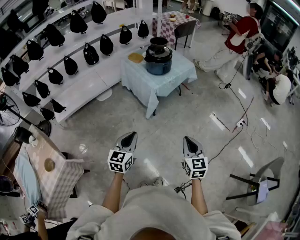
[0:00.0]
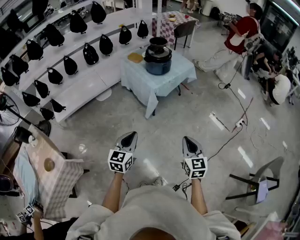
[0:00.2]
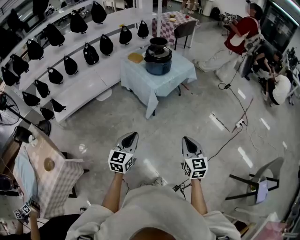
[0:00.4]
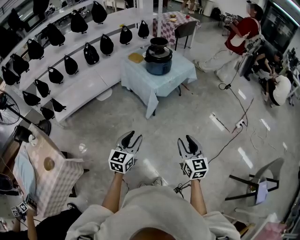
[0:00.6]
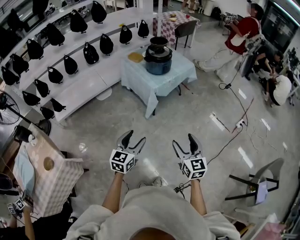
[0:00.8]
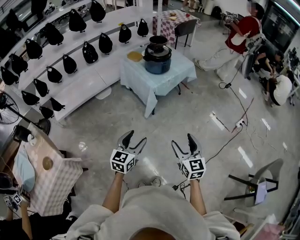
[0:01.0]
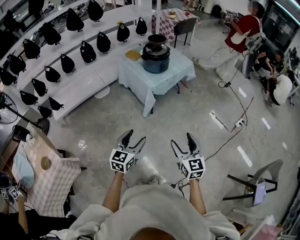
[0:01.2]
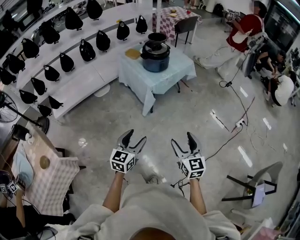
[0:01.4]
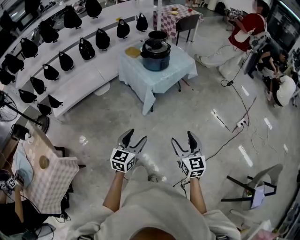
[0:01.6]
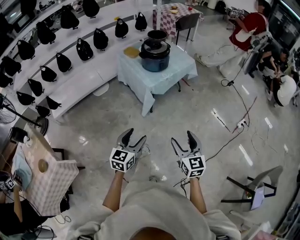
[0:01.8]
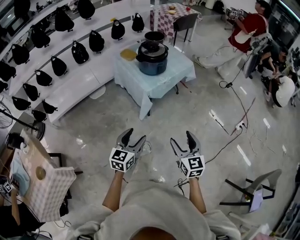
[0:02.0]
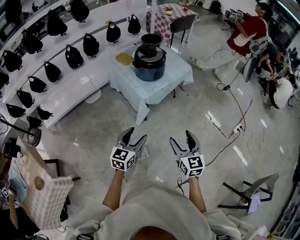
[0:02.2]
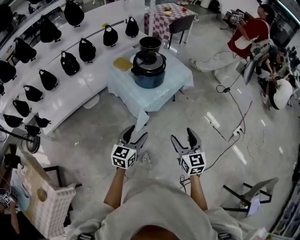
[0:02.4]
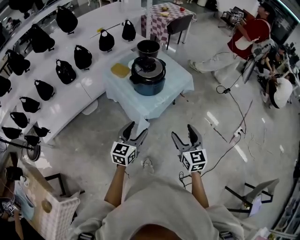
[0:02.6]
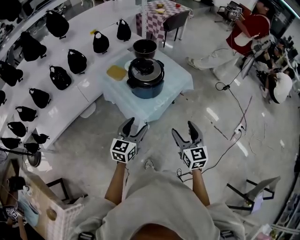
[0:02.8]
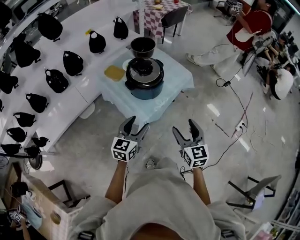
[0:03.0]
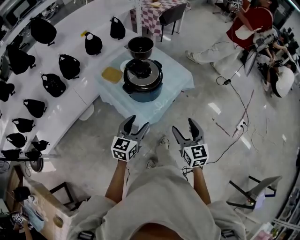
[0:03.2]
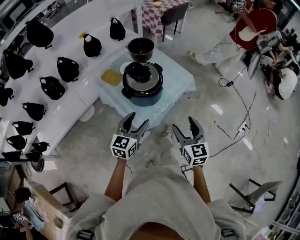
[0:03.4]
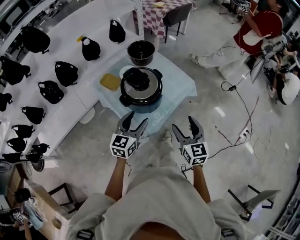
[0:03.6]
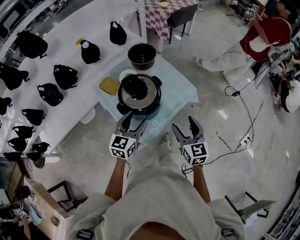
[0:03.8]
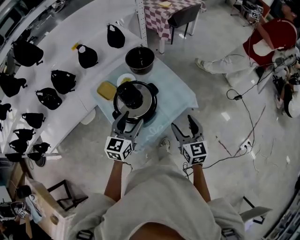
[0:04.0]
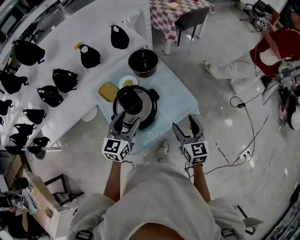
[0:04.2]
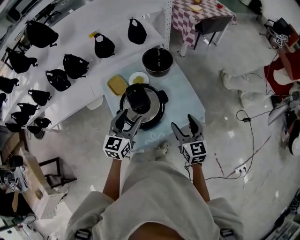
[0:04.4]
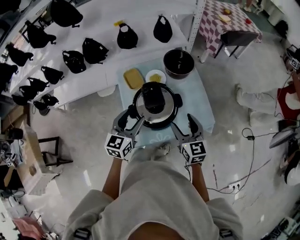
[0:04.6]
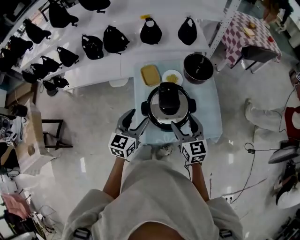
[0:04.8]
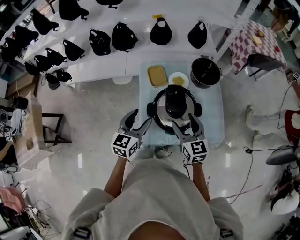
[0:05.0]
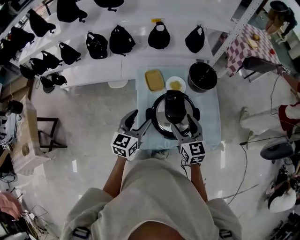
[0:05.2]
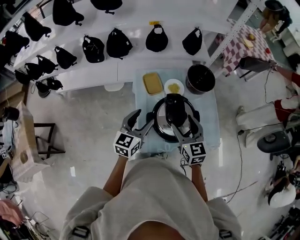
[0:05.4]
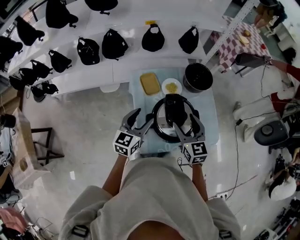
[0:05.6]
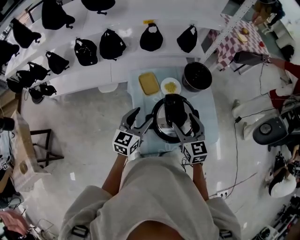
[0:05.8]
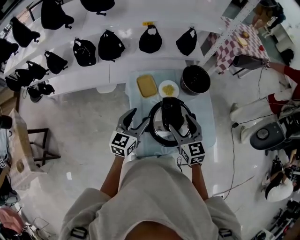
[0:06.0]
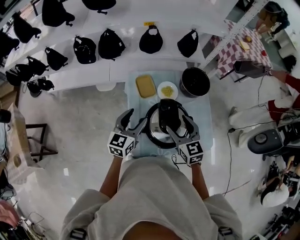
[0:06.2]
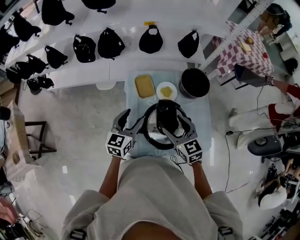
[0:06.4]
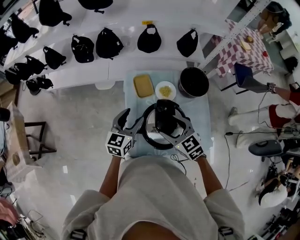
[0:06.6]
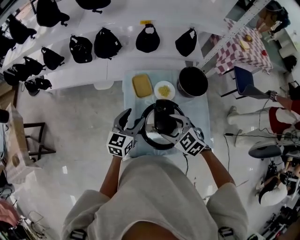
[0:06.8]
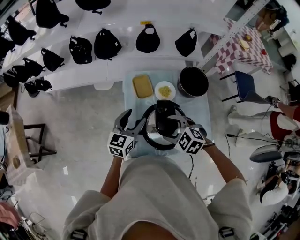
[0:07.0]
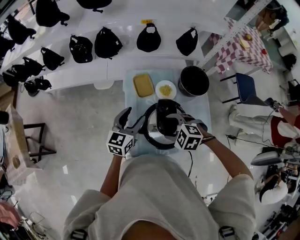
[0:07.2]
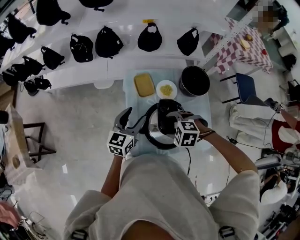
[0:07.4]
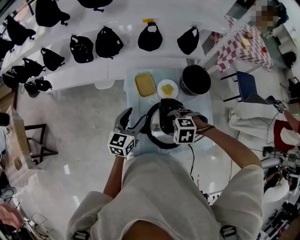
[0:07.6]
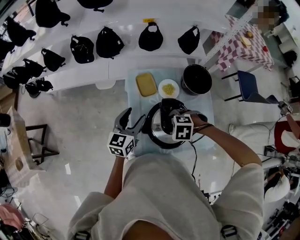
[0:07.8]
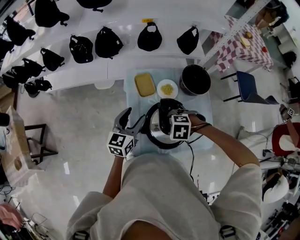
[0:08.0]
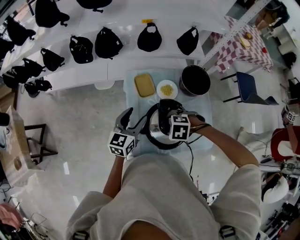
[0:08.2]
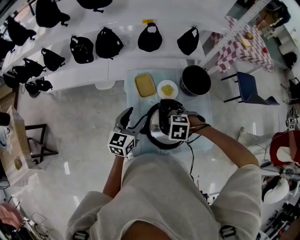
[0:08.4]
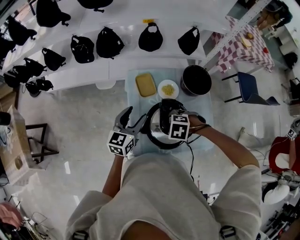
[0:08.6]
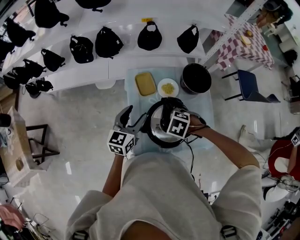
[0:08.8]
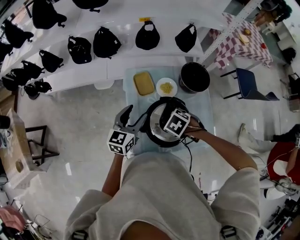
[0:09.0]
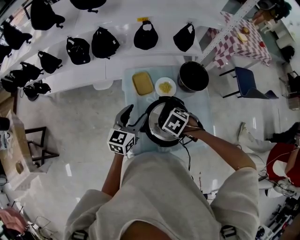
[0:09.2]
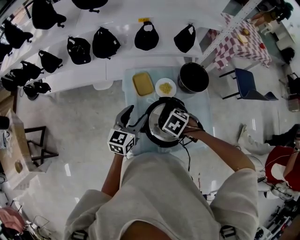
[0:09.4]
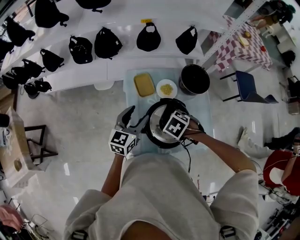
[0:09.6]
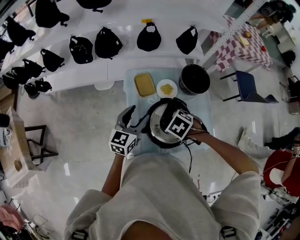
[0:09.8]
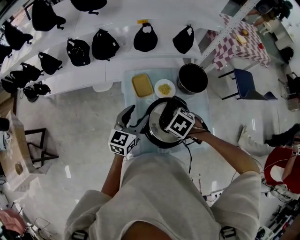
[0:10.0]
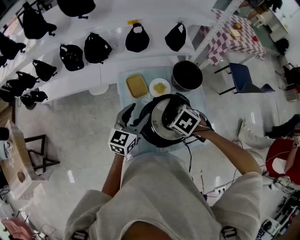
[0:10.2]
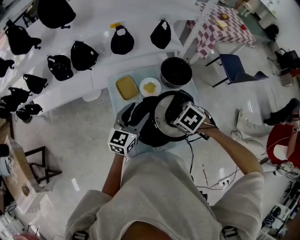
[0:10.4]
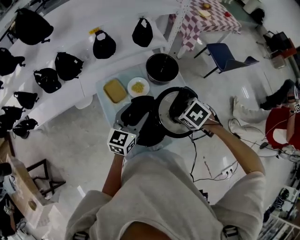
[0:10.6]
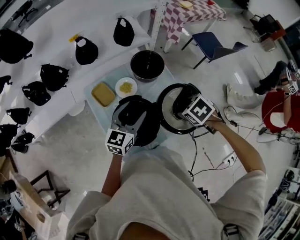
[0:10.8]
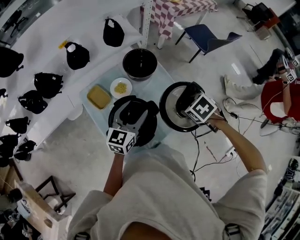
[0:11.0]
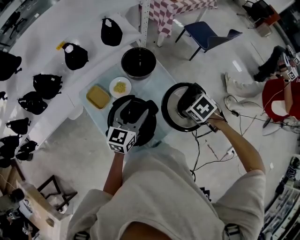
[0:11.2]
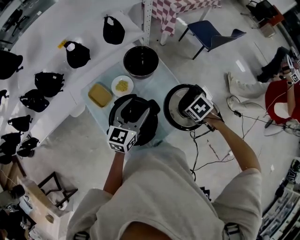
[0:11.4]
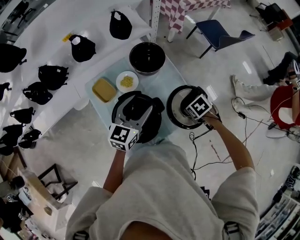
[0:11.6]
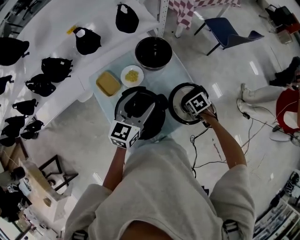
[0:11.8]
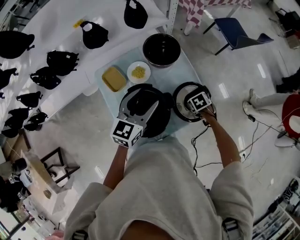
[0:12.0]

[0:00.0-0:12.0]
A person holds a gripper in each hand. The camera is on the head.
0:00.0 to 0:01.6: The right gripper heads forward, covering approximately 5 cm, and opens. The left gripper heads to the right, covering approximately 10 cm, and opens up.
0:01.6 to 0:03.0: The pair of grippers is taken forward, about 40 cm.
0:03.0 to 0:04.4: The two grippers go some 35 cm forward. The right gripper changes its angle by approximately 20 degrees. The left gripper turns by about 20 degrees.
0:04.4 to 0:06.0: The two grippers go roughly 20 cm to the left and forward. The right gripper turns by about 20 degrees.
0:06.0 to 0:07.6: The right gripper is displaced downward by roughly 10 cm, and points its fingers some 50 degrees further downward.
0:07.6 to 0:09.0: The right gripper changes its angle by some 30 degrees.
0:09.0 to 0:10.4: The right gripper changes place by about 10 cm; the left gripper shifts by roughly 10 cm.
0:10.4 to 0:12.0: The left gripper changes place by approximately 15 cm, while the right gripper ends up about 30 cm from where it was, and changes its angle by some 40 degrees.

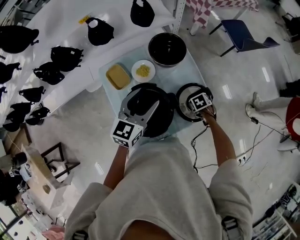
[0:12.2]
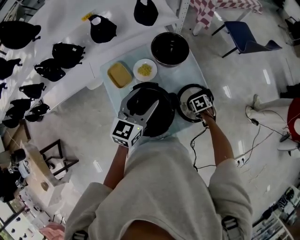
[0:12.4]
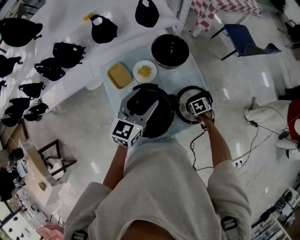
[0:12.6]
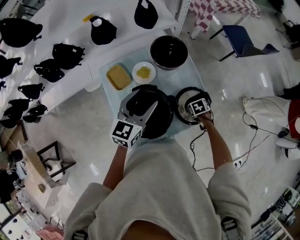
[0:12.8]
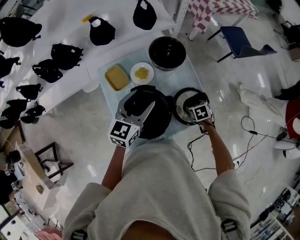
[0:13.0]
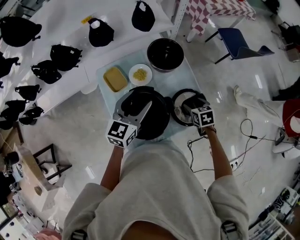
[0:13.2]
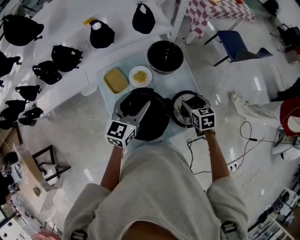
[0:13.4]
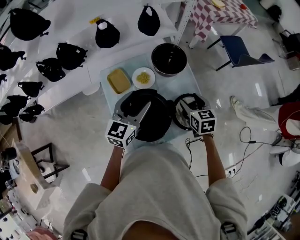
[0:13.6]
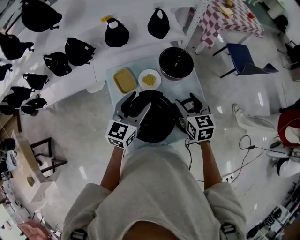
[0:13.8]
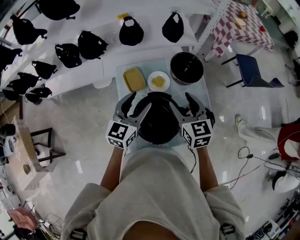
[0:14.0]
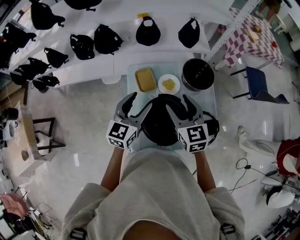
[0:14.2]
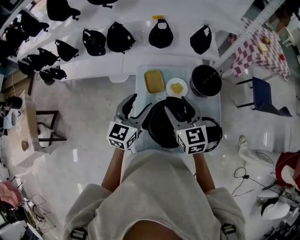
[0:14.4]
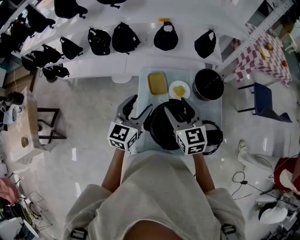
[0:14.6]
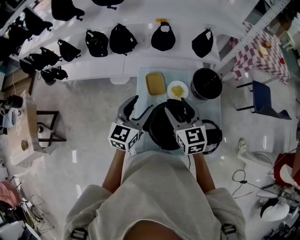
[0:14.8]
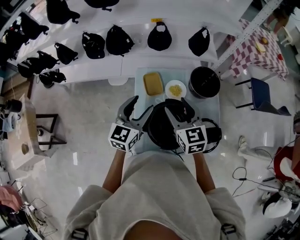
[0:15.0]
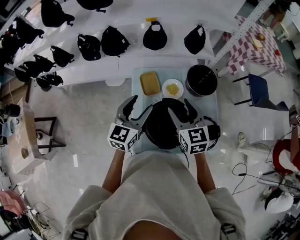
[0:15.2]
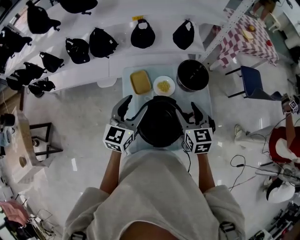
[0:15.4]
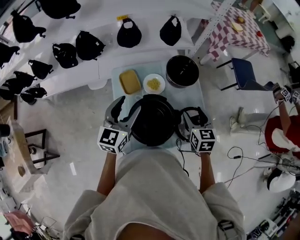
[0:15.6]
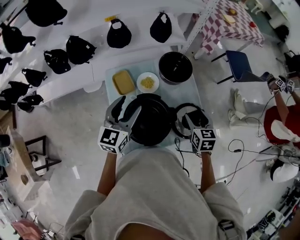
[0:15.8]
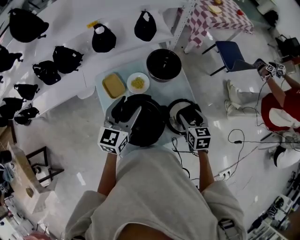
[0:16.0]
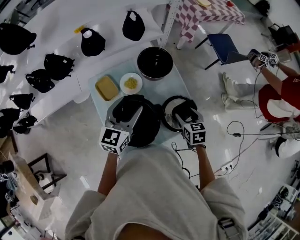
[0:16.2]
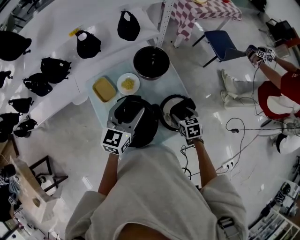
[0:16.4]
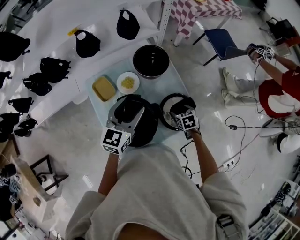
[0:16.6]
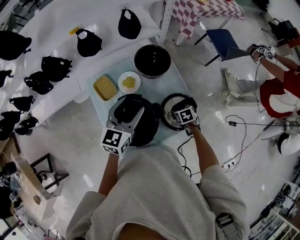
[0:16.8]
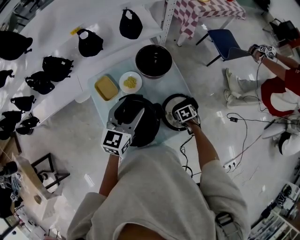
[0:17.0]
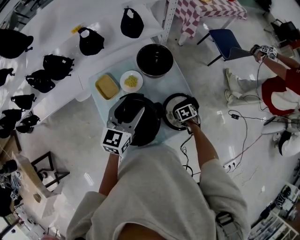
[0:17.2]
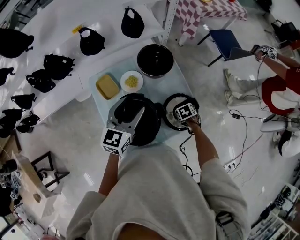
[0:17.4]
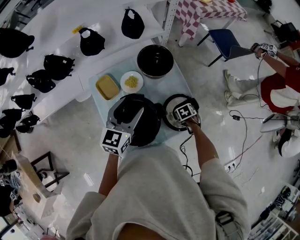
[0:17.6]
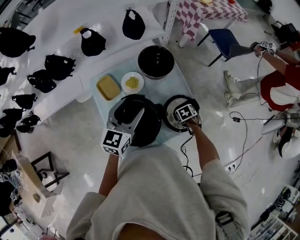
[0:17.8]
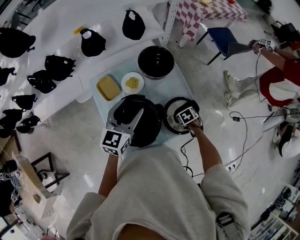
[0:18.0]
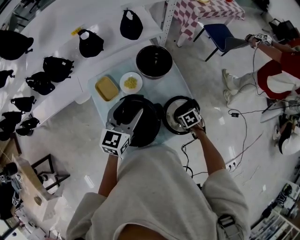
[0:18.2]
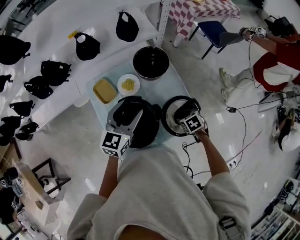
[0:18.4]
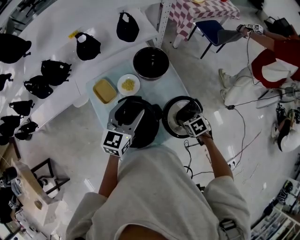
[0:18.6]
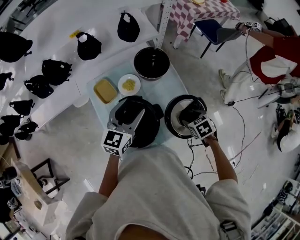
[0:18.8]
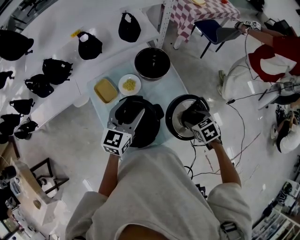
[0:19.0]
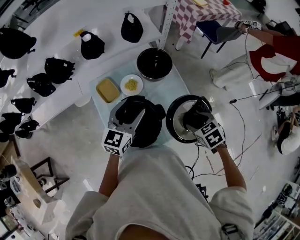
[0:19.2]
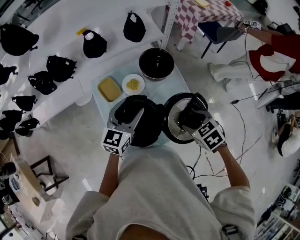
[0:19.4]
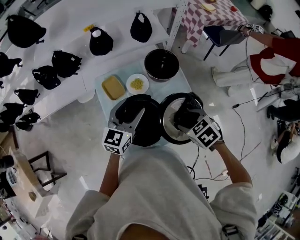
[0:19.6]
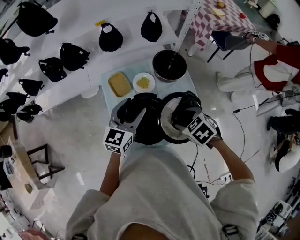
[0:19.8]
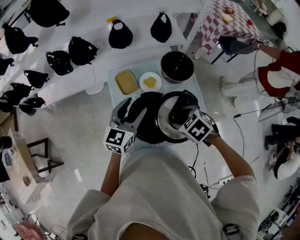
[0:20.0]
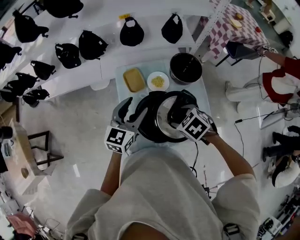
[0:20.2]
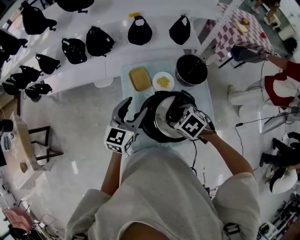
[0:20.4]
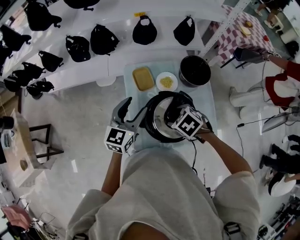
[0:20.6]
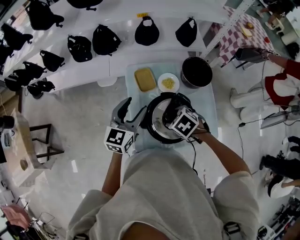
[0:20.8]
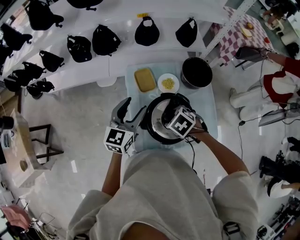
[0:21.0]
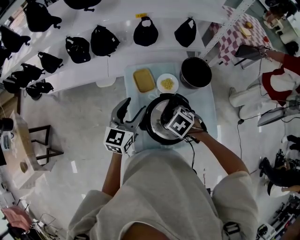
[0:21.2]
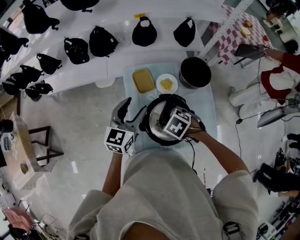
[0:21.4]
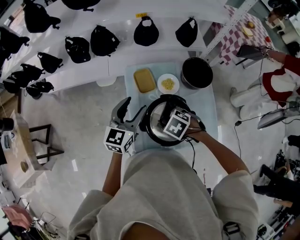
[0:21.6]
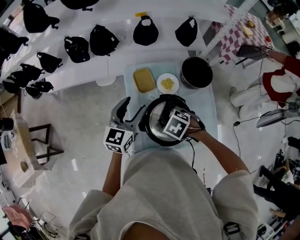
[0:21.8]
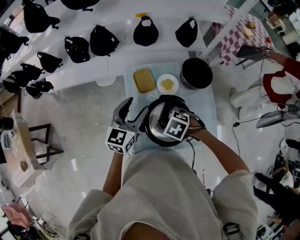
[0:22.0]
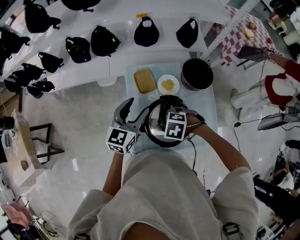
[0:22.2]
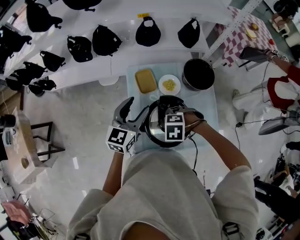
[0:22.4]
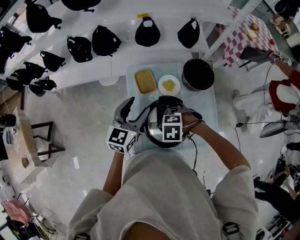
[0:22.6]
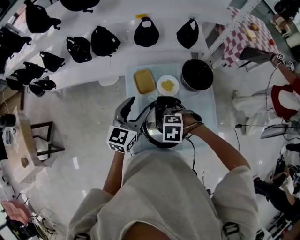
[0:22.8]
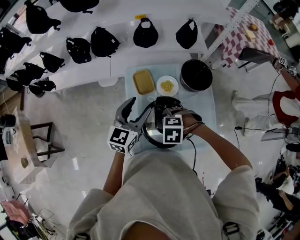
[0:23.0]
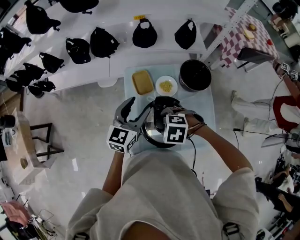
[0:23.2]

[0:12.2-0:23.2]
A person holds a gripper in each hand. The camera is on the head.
0:12.2 to 0:13.8: The right gripper shifts about 25 cm upward, and tilts its fingers about 50 degrees upward. Meanwhile the left gripper changes place by some 5 cm.
0:13.8 to 0:15.4: Both grippers move to the left, roughly 10 cm.
0:15.4 to 0:17.0: The right gripper is displaced downward by some 30 cm, and points its fingers some 50 degrees further downward; the left gripper shifts by about 15 cm.
0:17.0 to 0:18.4: The right gripper travels upward by approximately 10 cm.
0:18.4 to 0:20.0: The right gripper goes roughly 25 cm upward and to the left, and turns by roughly 30 degrees. The left gripper goes some 10 cm to the left.
0:20.0 to 0:21.6: The right gripper changes place by some 15 cm; the left gripper moves approximately 10 cm.
0:21.6 to 0:23.2: The right gripper rotates roughly 30 degrees.

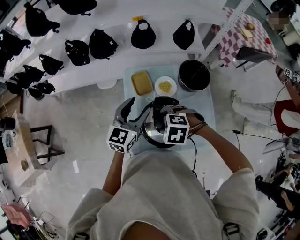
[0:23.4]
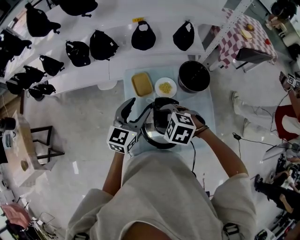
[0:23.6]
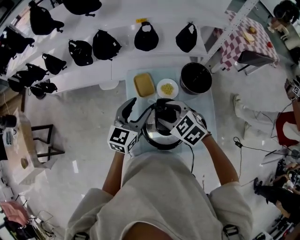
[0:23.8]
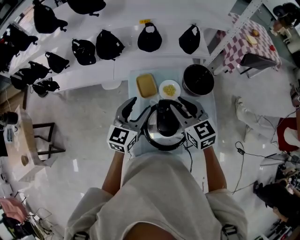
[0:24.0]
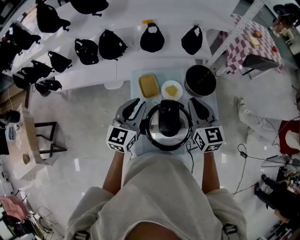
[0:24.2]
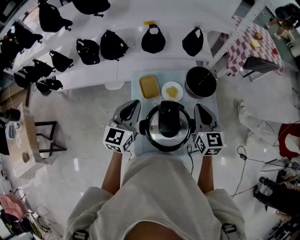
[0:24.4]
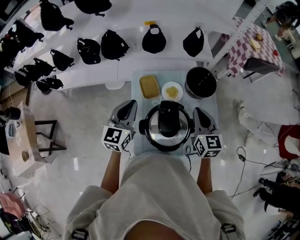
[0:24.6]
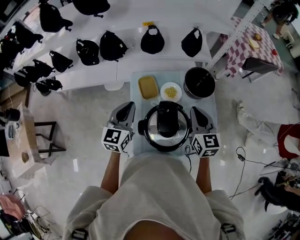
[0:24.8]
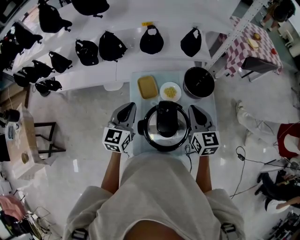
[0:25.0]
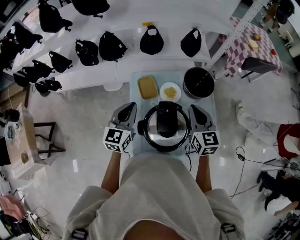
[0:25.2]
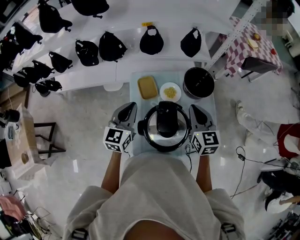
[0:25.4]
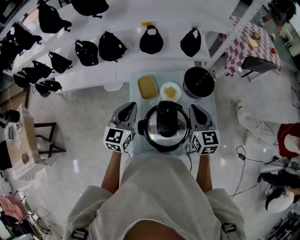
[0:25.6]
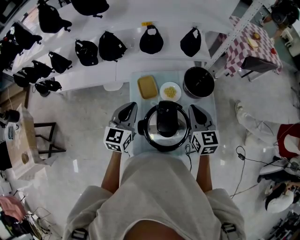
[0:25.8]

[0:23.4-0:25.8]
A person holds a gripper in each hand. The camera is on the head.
0:23.4 to 0:24.6: The right gripper ends up approximately 20 cm from where it was, angles its fingers upward, by approximately 50 degrees, and closes up, while the left gripper shifts by approximately 5 cm, and closes up.
0:24.6 to 0:25.8: The grippers stay close to where they were, moving slightly.
